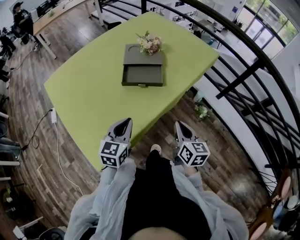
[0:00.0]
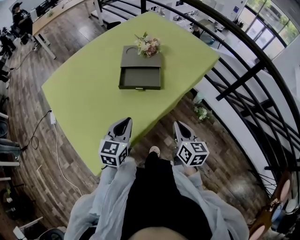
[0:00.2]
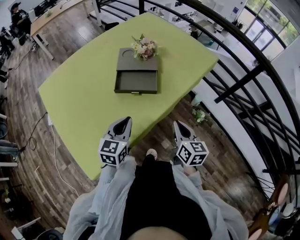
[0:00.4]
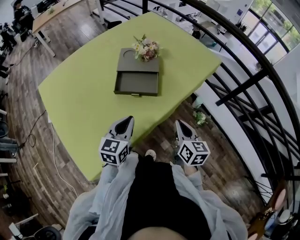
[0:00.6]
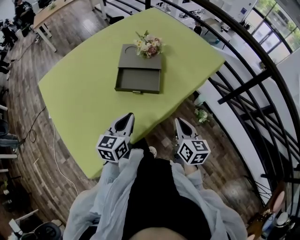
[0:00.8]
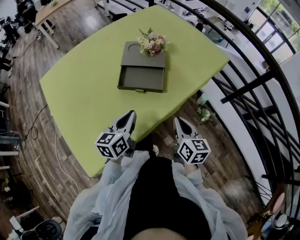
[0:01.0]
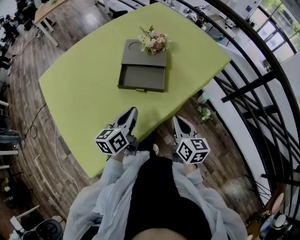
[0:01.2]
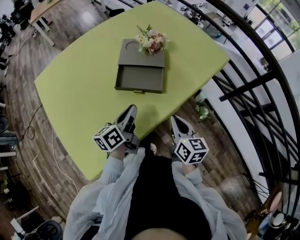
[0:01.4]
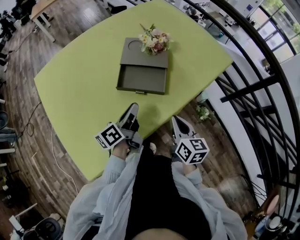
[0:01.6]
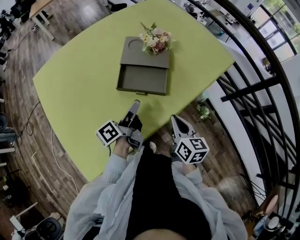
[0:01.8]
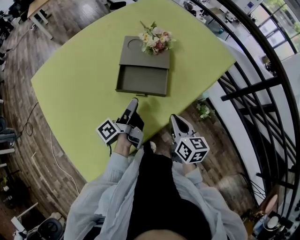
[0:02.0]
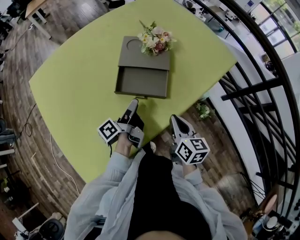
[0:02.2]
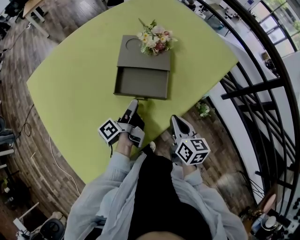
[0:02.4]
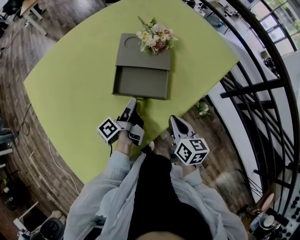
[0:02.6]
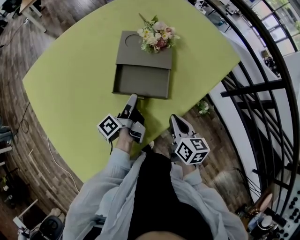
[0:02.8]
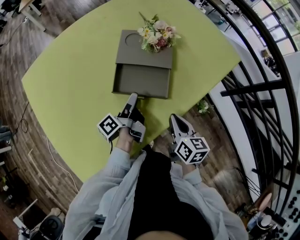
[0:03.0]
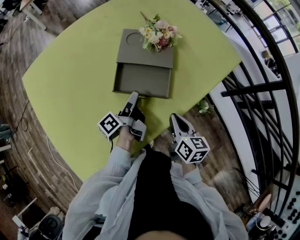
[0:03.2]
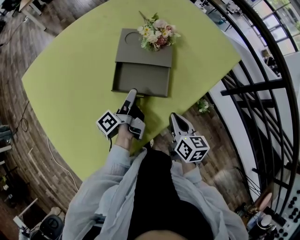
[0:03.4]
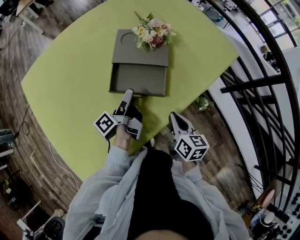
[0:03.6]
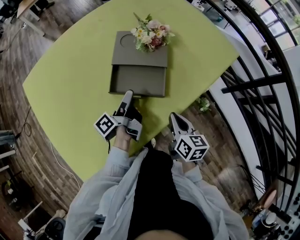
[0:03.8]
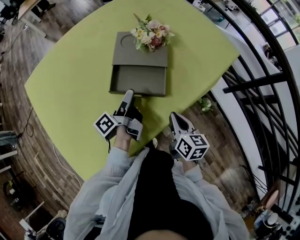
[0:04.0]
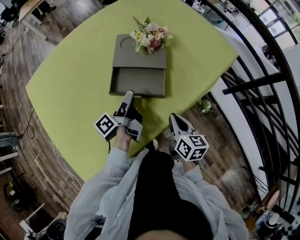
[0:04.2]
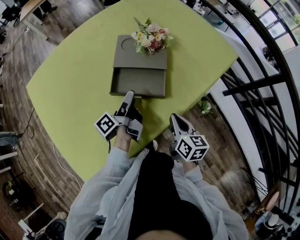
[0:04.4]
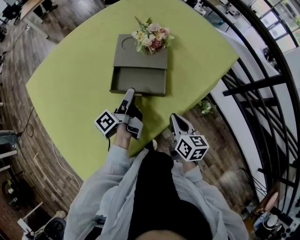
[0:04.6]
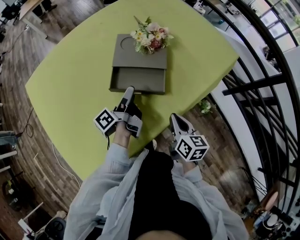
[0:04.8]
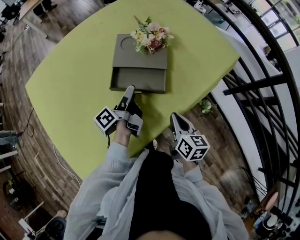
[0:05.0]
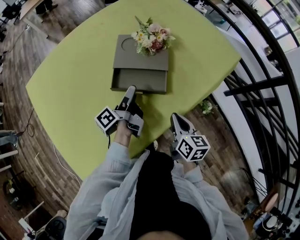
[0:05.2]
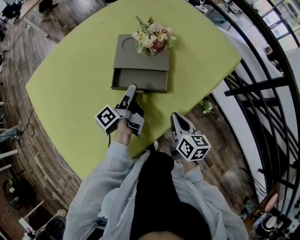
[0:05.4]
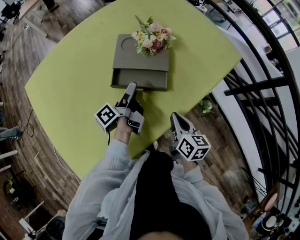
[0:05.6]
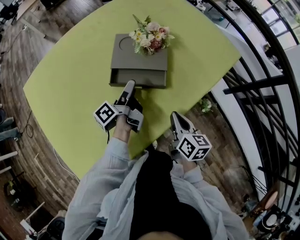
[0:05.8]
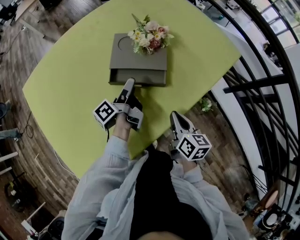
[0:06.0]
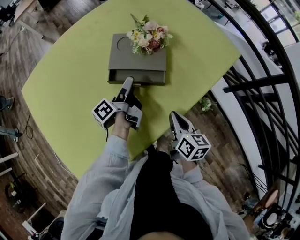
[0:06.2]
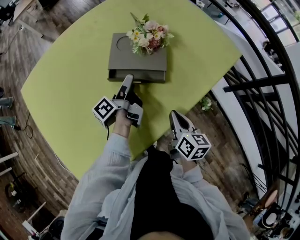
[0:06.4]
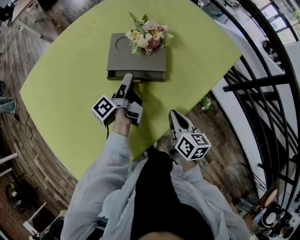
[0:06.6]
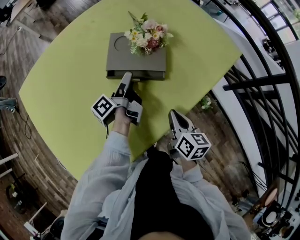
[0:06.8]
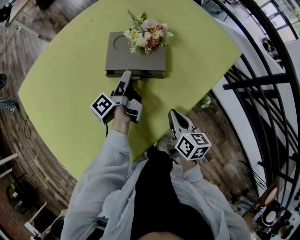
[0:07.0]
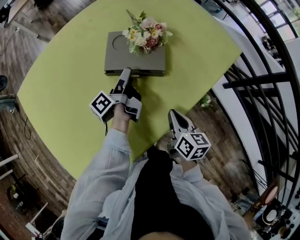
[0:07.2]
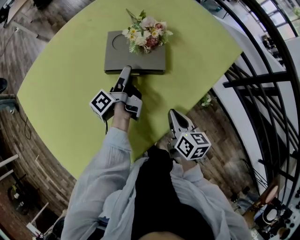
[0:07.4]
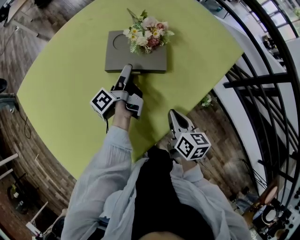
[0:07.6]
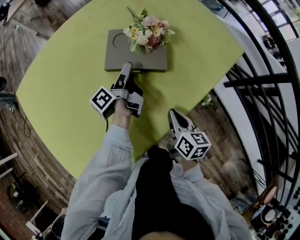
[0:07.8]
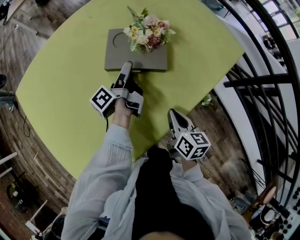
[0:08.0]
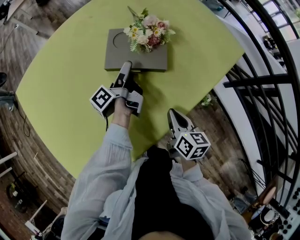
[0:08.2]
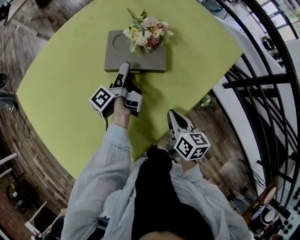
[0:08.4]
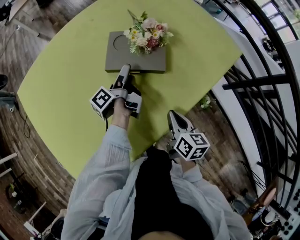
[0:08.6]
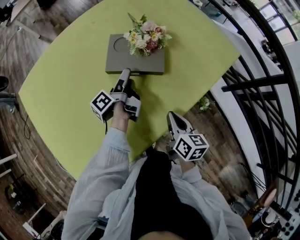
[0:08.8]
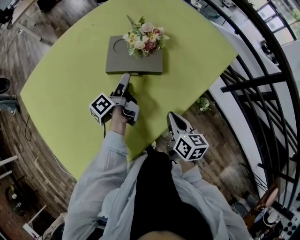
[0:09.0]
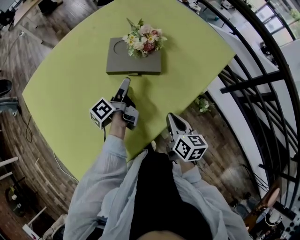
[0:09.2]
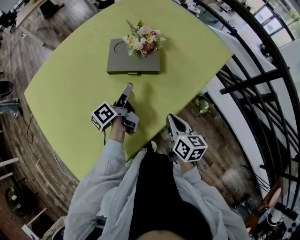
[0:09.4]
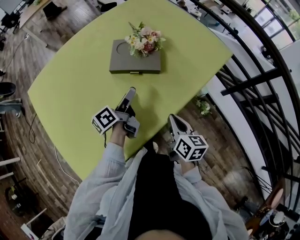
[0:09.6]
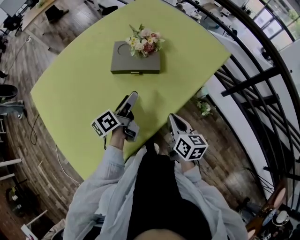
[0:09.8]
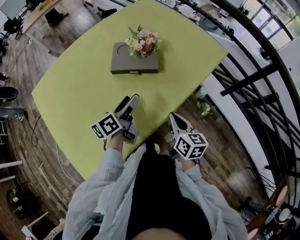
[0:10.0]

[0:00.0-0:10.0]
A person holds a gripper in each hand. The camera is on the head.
0:00.0 to 0:01.4: Both grippers travel together forward, some 10 cm. The left gripper twists some 50 degrees counterclockwise, seen from behind.
0:01.4 to 0:02.8: The left gripper travels forward and downward by some 10 cm, rolls counterclockwise, seen from behind, by some 40 degrees, and opens up. Meanwhile the right gripper heads forward, covering some 5 cm.
0:02.8 to 0:04.2: The grippers stay close to where they were, moving slightly.
0:04.2 to 0:05.8: The left gripper travels forward by some 5 cm.
0:05.8 to 0:07.2: The left gripper heads forward, covering approximately 5 cm.
0:07.2 to 0:08.6: The grippers make only small movements.
0:08.6 to 0:10.0: The left gripper shifts some 15 cm backward and upward, and rotates roughly 40 degrees. The right gripper heads upward and backward, covering about 10 cm.

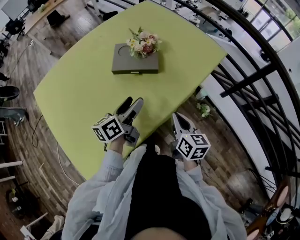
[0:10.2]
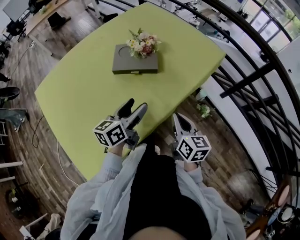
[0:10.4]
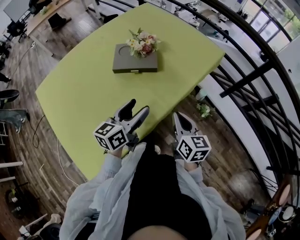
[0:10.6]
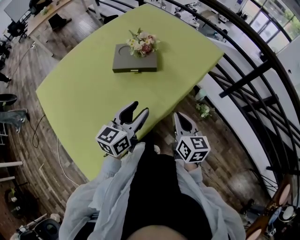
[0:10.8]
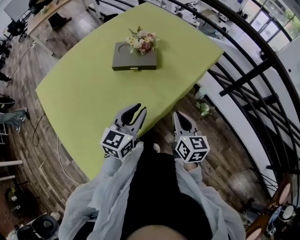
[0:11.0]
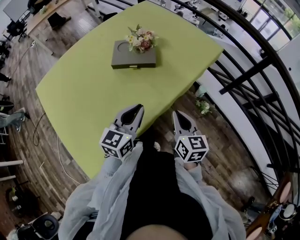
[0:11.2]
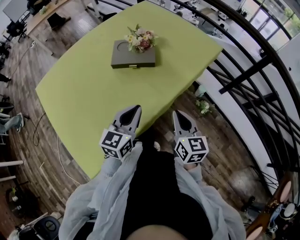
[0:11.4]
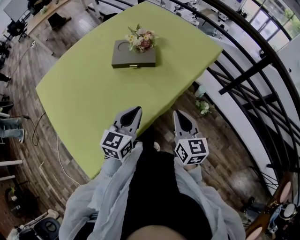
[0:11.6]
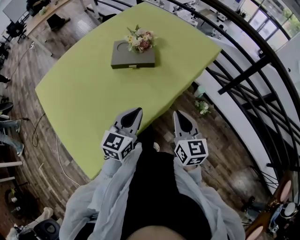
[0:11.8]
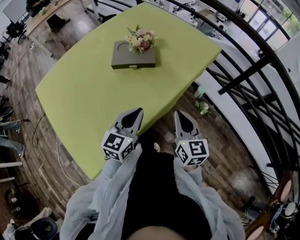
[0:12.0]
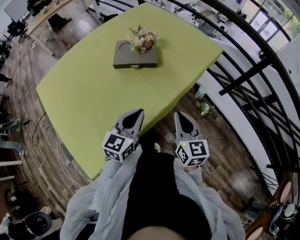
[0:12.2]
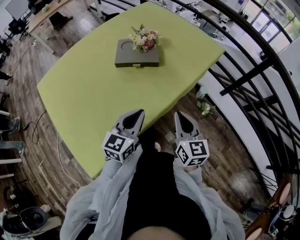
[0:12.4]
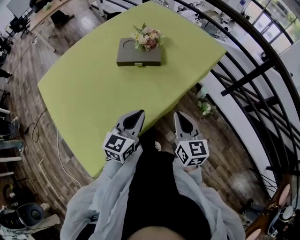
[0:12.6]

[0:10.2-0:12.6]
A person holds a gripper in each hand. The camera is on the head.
0:10.2 to 0:11.4: The right gripper changes place by some 5 cm. The left gripper shifts approximately 10 cm backward, changes its angle by about 40 degrees, and closes its fingers.
0:11.4 to 0:12.6: The grippers make only small movements.

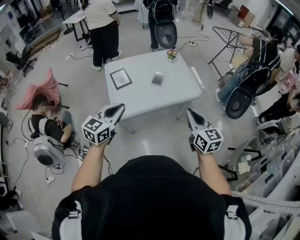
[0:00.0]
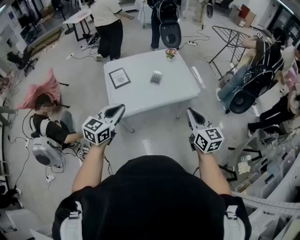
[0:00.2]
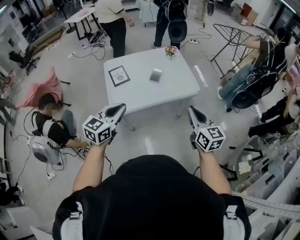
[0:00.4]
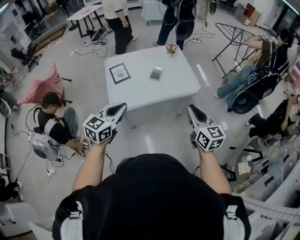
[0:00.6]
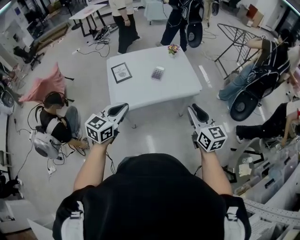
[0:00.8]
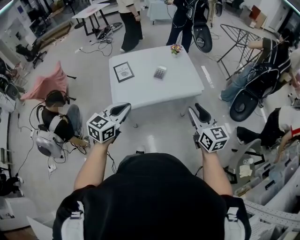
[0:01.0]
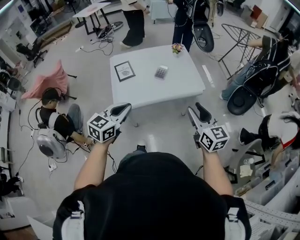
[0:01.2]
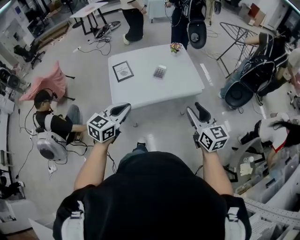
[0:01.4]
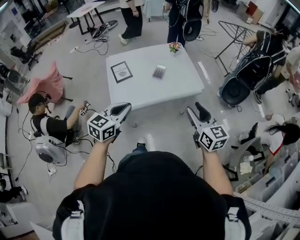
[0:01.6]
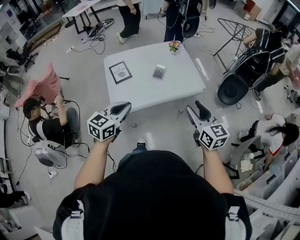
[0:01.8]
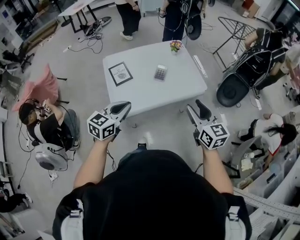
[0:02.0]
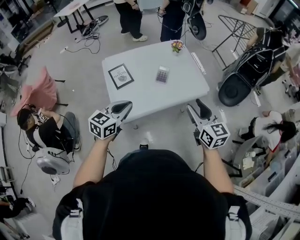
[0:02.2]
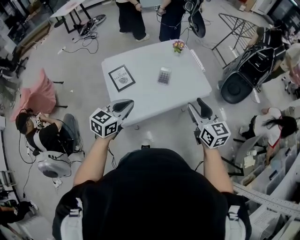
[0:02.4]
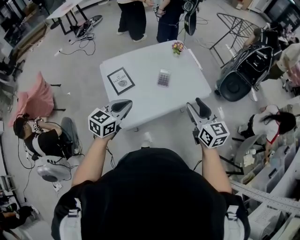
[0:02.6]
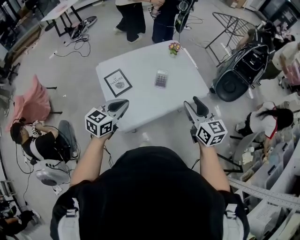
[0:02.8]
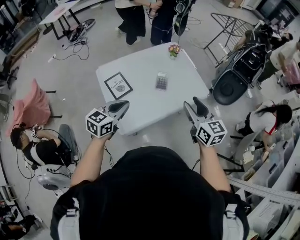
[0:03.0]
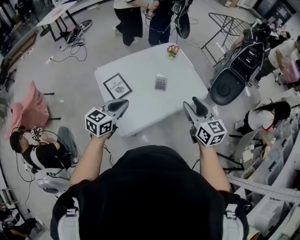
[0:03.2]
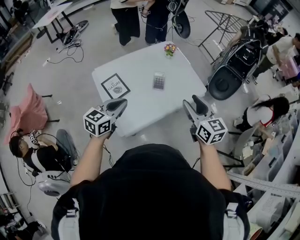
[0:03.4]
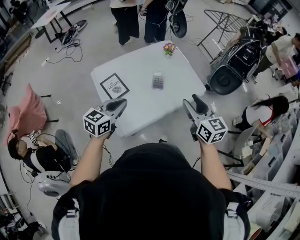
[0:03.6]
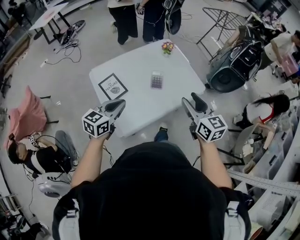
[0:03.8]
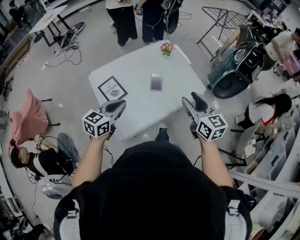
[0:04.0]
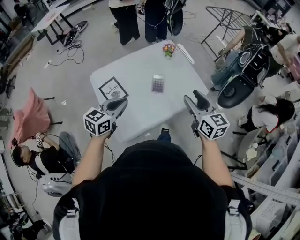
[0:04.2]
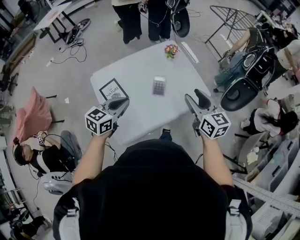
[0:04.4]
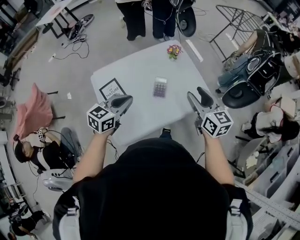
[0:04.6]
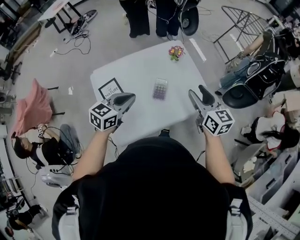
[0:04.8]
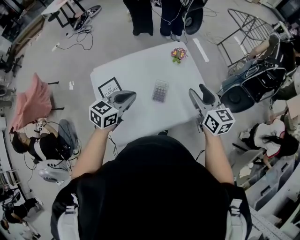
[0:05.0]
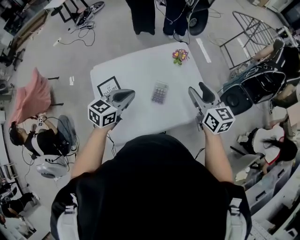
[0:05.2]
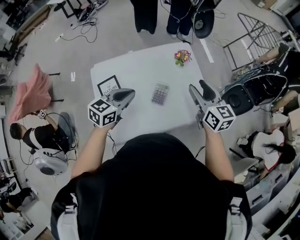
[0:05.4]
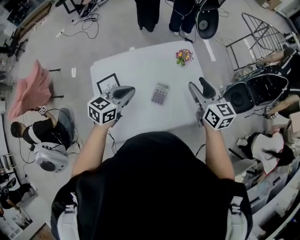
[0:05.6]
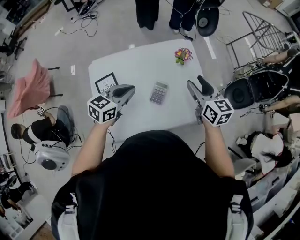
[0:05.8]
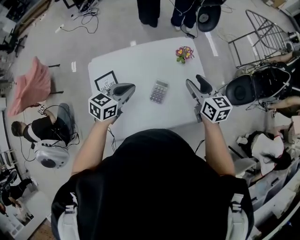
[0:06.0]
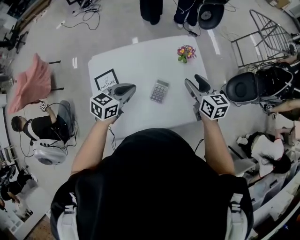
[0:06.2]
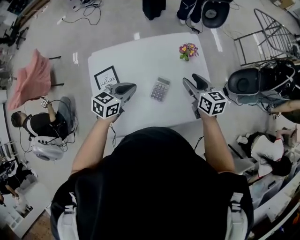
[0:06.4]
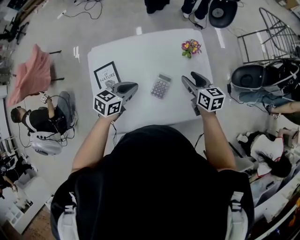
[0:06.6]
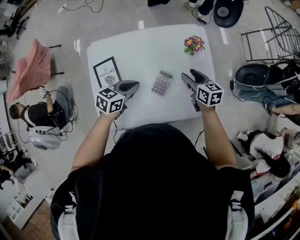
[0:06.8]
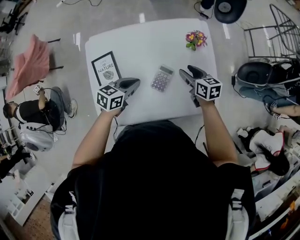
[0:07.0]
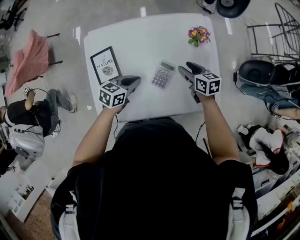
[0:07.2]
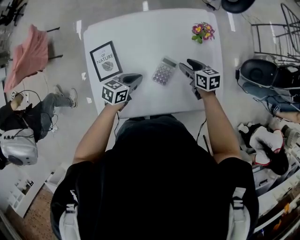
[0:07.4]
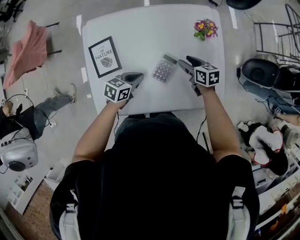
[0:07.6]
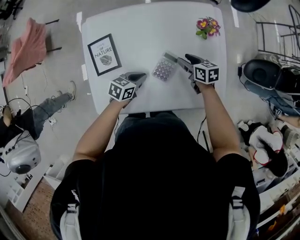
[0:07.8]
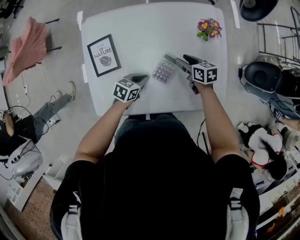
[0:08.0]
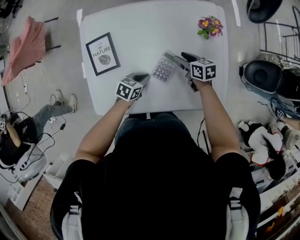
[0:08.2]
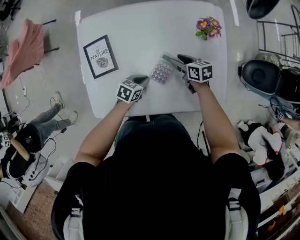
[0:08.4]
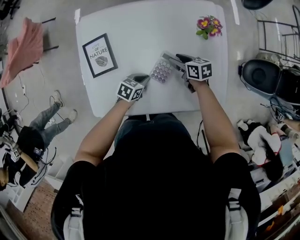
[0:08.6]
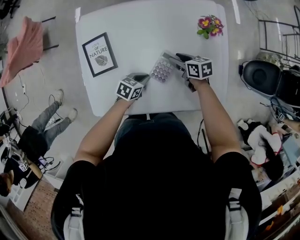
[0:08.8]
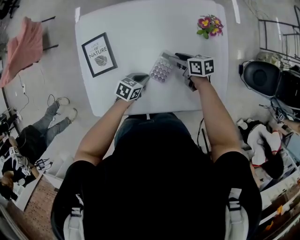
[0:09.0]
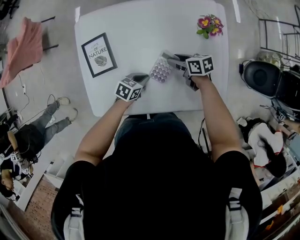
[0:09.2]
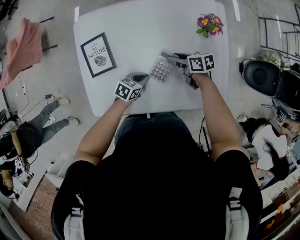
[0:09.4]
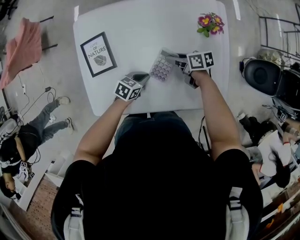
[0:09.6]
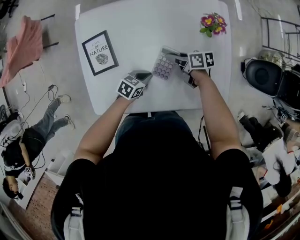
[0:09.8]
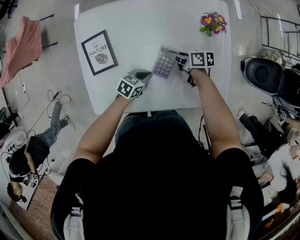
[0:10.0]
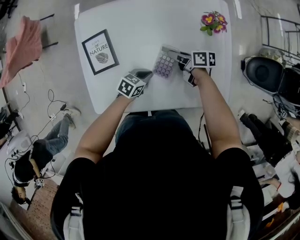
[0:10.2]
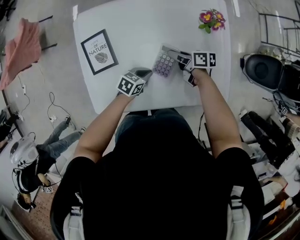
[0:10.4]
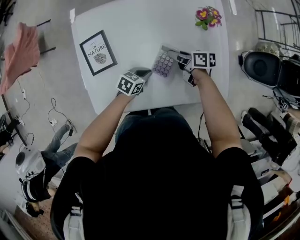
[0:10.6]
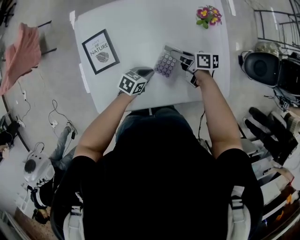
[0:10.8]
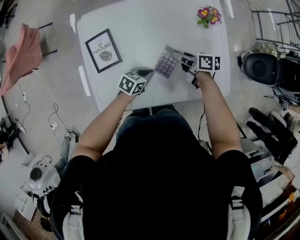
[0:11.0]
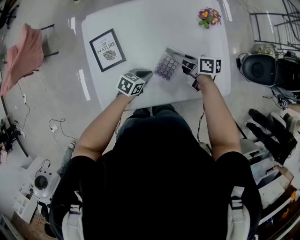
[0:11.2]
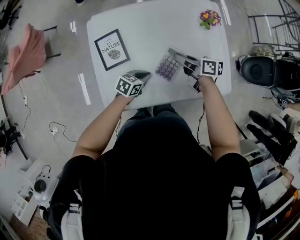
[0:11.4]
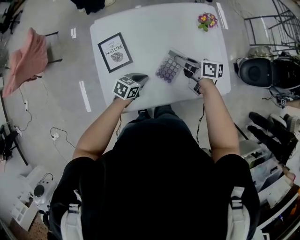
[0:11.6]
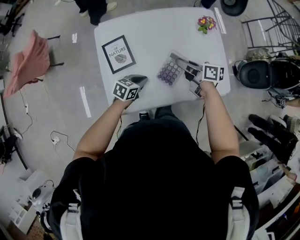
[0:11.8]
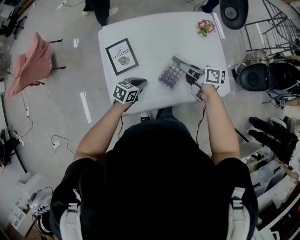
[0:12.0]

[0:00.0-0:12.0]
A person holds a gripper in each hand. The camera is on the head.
0:00.0 to 0:01.6: The right gripper opens up, while the left gripper moves to the right, roughly 5 cm.
0:01.6 to 0:03.0: Both grippers move forward and to the left, approximately 25 cm.
0:03.0 to 0:04.4: Both grippers travel together forward, roughly 10 cm.
0:04.4 to 0:06.0: Both grippers move forward and downward, about 25 cm.
0:06.0 to 0:07.6: The grippers both shift downward by roughly 25 cm. The left gripper changes its angle by about 20 degrees, while the right gripper turns by about 30 degrees.
0:07.6 to 0:09.0: The right gripper changes place by about 5 cm; the left gripper is displaced downward by some 10 cm.
0:09.0 to 0:10.4: The right gripper closes up.
0:10.4 to 0:12.0: The right gripper travels upward by roughly 20 cm. The left gripper moves approximately 20 cm.
